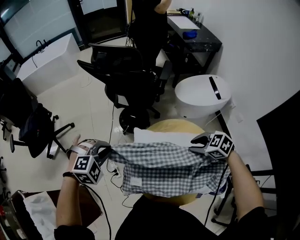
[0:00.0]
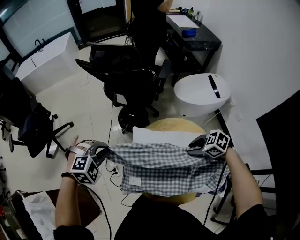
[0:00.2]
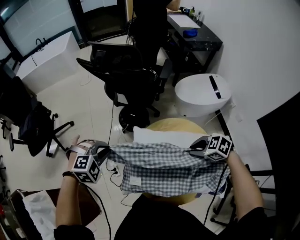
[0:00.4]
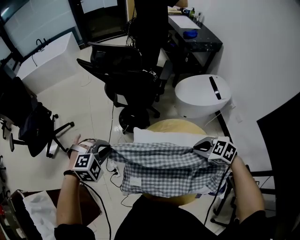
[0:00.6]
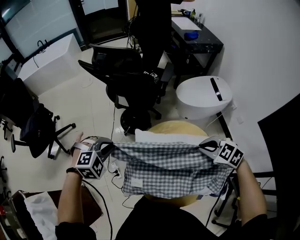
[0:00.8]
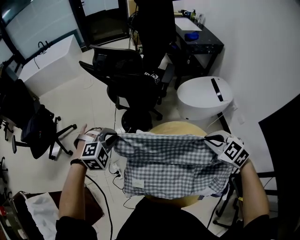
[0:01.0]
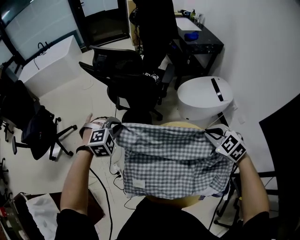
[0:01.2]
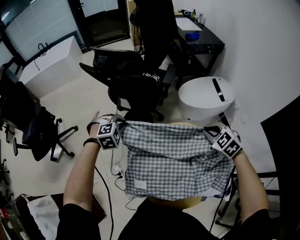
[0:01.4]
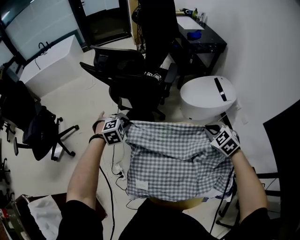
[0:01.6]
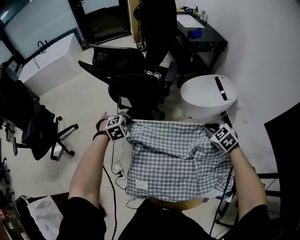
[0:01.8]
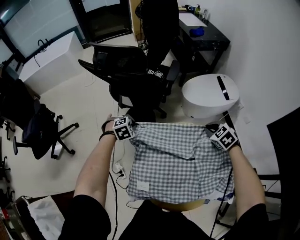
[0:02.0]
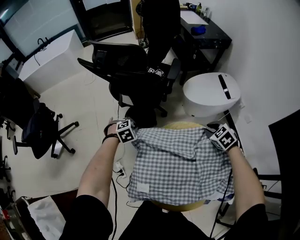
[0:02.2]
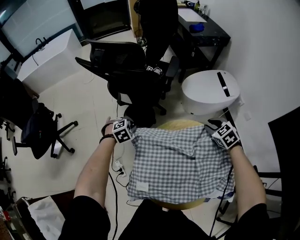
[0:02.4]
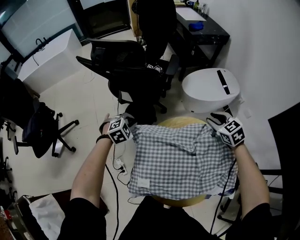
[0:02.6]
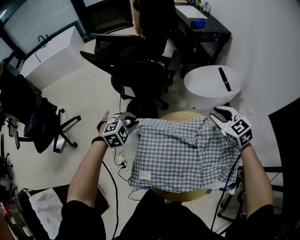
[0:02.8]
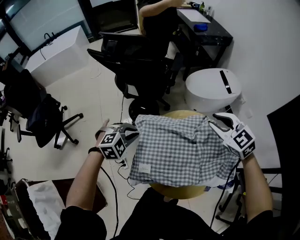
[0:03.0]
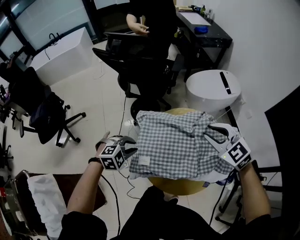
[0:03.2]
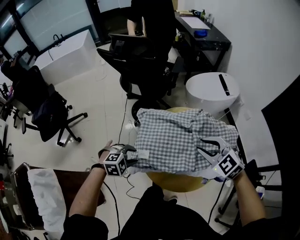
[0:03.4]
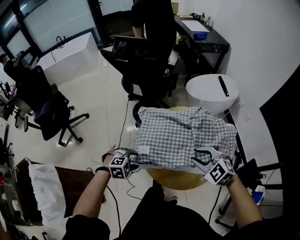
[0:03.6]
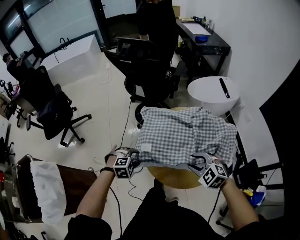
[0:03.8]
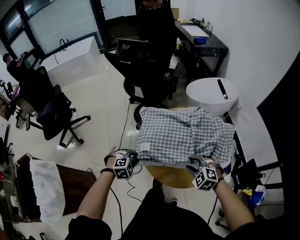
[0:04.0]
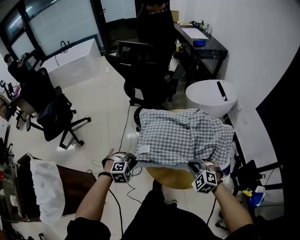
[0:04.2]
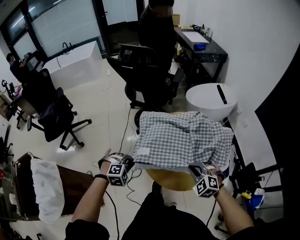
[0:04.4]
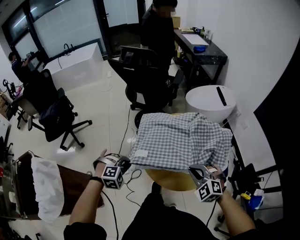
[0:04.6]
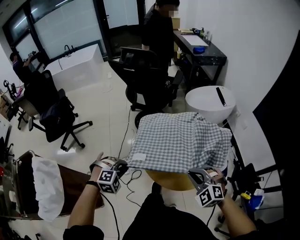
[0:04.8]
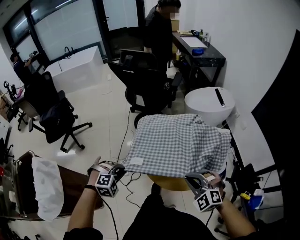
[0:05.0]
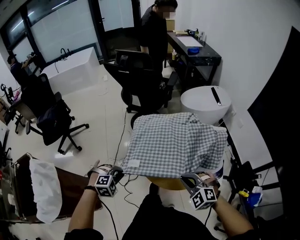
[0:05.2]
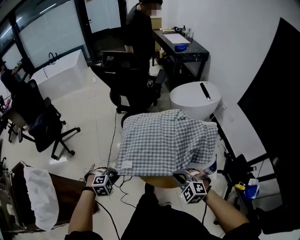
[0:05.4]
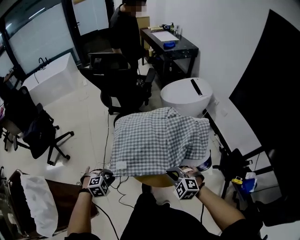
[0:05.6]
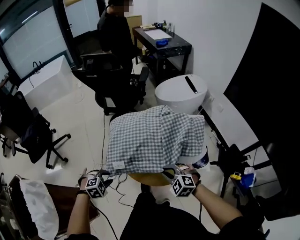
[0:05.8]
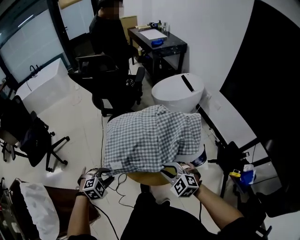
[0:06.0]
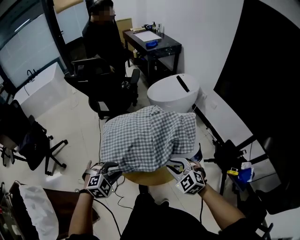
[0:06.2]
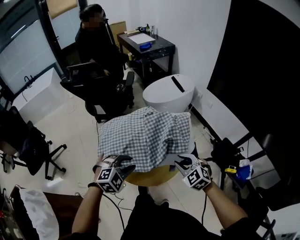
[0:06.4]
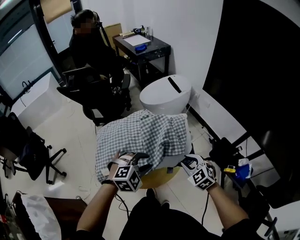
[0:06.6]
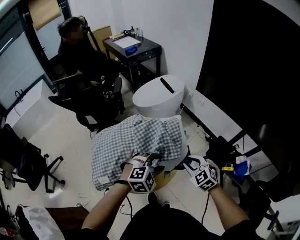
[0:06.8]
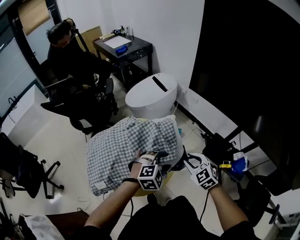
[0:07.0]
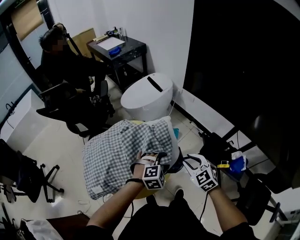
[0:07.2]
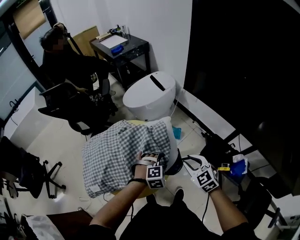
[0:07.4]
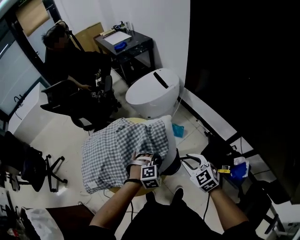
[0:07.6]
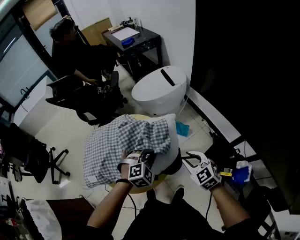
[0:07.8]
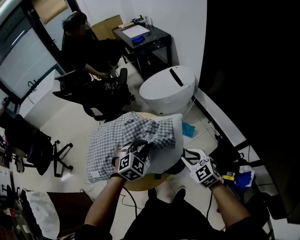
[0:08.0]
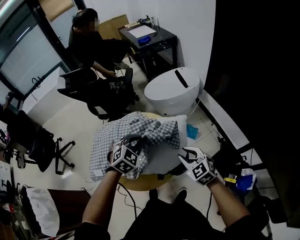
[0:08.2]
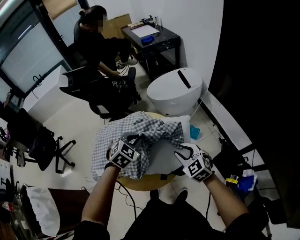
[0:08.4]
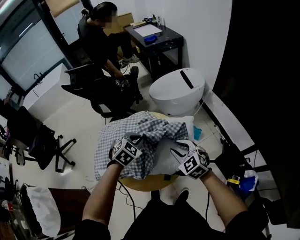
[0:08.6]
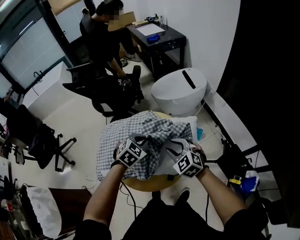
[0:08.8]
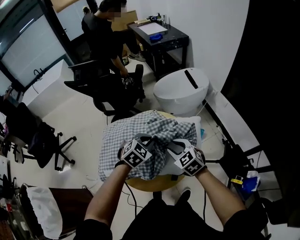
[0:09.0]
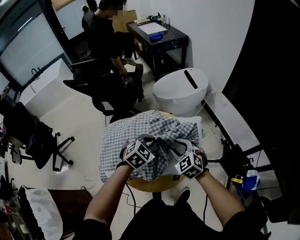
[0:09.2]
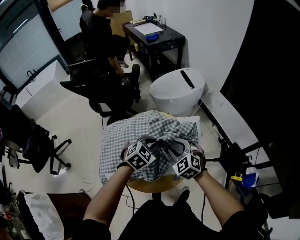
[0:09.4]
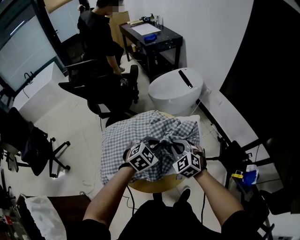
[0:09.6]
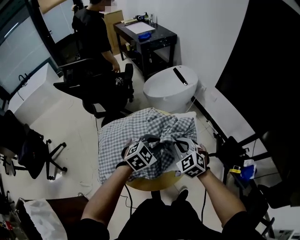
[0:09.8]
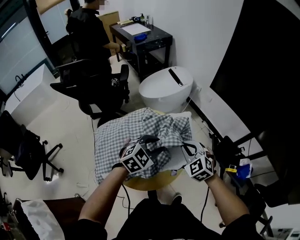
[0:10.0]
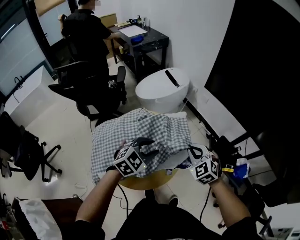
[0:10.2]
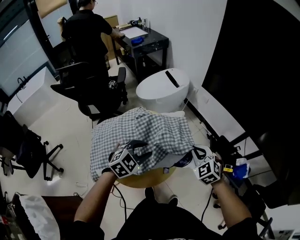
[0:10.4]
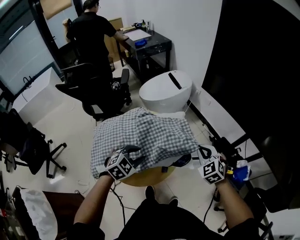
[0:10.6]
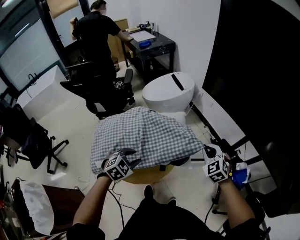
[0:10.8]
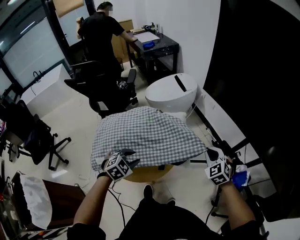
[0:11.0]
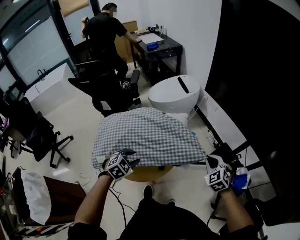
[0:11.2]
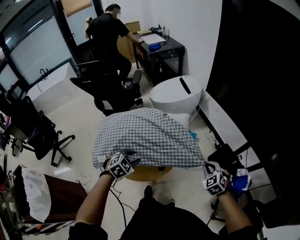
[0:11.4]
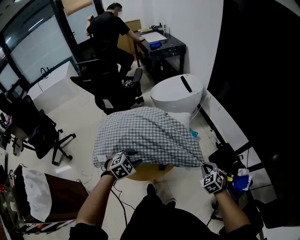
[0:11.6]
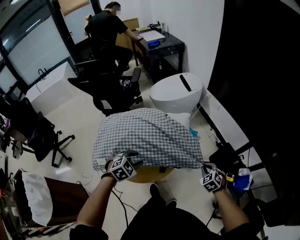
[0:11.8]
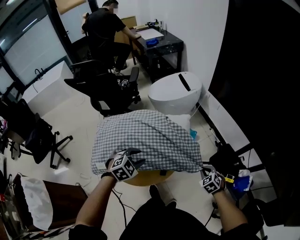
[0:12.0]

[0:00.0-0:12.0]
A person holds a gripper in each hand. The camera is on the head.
0:00.0 to 0:01.6: The left gripper shifts by approximately 20 cm; the right gripper goes upward and returns, some 10 cm each way, turns by approximately 30 degrees, and closes.
0:01.6 to 0:03.0: The right gripper shifts some 10 cm upward and backward, changes its angle by approximately 20 degrees, and opens up. Meanwhile the left gripper is displaced backward by roughly 15 cm.
0:03.0 to 0:04.4: The right gripper heads backward and downward, covering approximately 30 cm, changes its angle by roughly 30 degrees, and closes its fingers. Meanwhile the left gripper heads backward, covering approximately 25 cm, and opens, then closes once more.
0:04.4 to 0:06.0: The right gripper goes up and down, approximately 10 cm each way, reversing 2 times, and opens; the left gripper swings up and down, about 10 cm each way, with 2 reversals, and opens up.
0:06.0 to 0:07.6: The right gripper shifts by roughly 30 cm, and turns by approximately 40 degrees, while the left gripper reaches roughly 10 cm upward, then returns, turns by some 20 degrees, and opens, then closes once more.
0:07.6 to 0:09.0: The left gripper is displaced to the left, forward and upward by some 20 cm, and changes its angle by approximately 40 degrees. Meanwhile the right gripper is displaced to the left and forward by approximately 20 cm.
0:09.0 to 0:10.4: The right gripper moves about 20 cm, changes its angle by roughly 30 degrees, and closes, while the left gripper shifts by about 10 cm, rotates approximately 20 degrees, and opens its fingers.
0:10.4 to 0:12.0: The left gripper shifts approximately 5 cm downward. Meanwhile the right gripper travels downward and to the right by approximately 20 cm, and changes its angle by about 20 degrees.

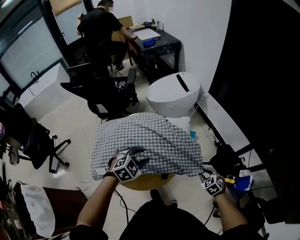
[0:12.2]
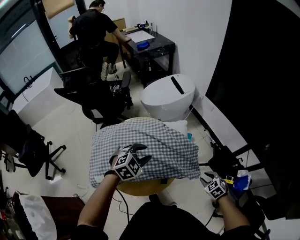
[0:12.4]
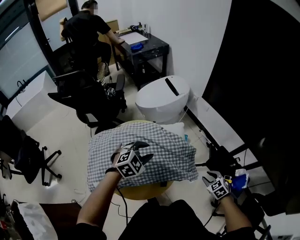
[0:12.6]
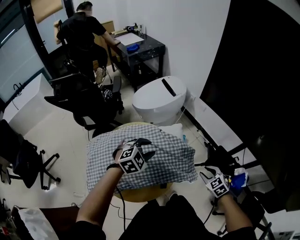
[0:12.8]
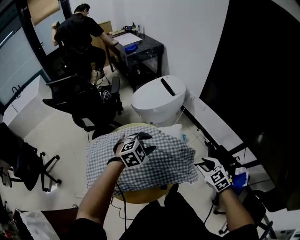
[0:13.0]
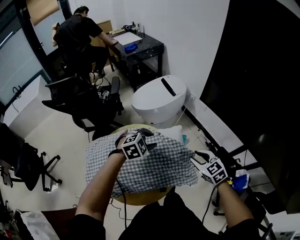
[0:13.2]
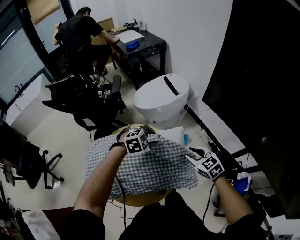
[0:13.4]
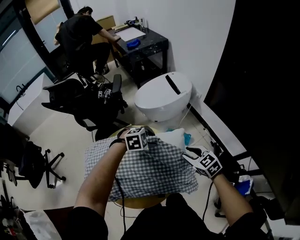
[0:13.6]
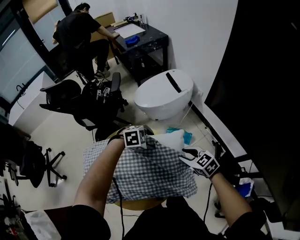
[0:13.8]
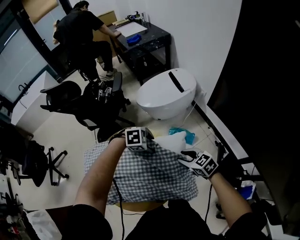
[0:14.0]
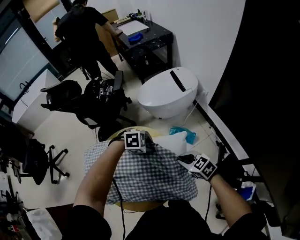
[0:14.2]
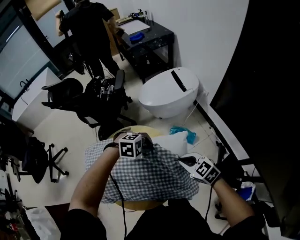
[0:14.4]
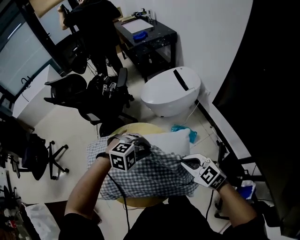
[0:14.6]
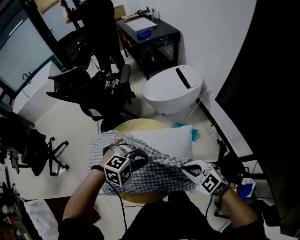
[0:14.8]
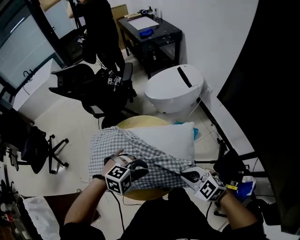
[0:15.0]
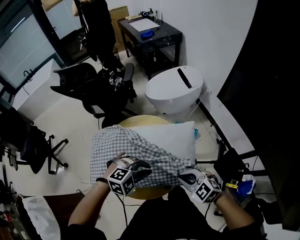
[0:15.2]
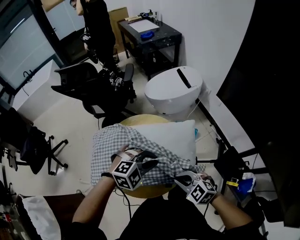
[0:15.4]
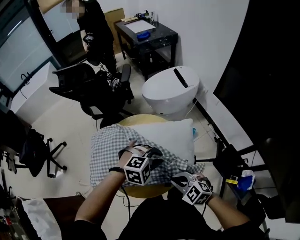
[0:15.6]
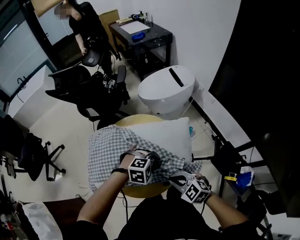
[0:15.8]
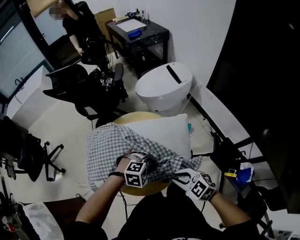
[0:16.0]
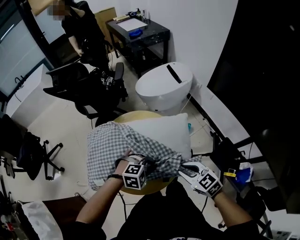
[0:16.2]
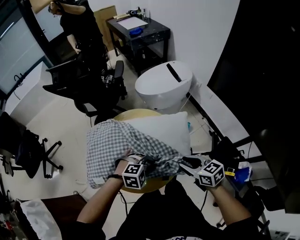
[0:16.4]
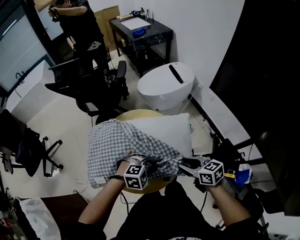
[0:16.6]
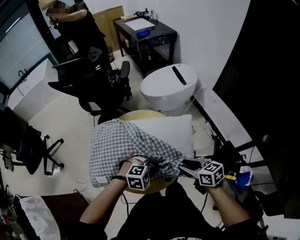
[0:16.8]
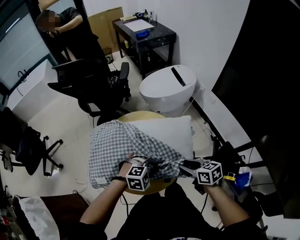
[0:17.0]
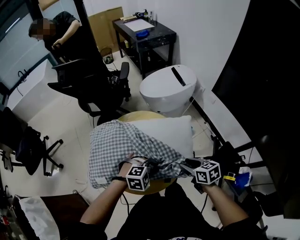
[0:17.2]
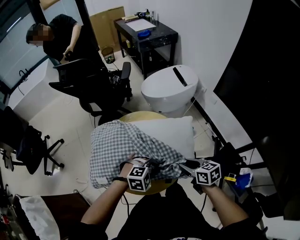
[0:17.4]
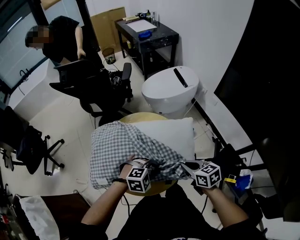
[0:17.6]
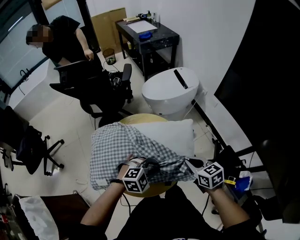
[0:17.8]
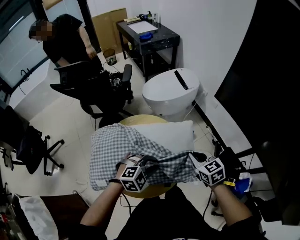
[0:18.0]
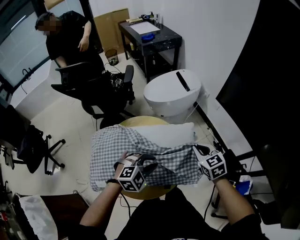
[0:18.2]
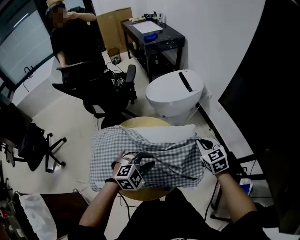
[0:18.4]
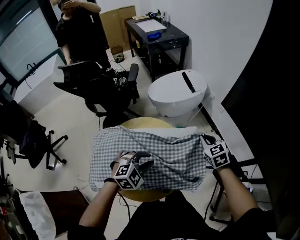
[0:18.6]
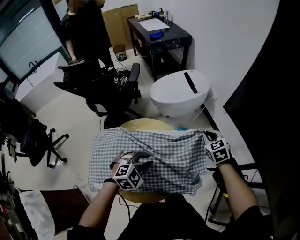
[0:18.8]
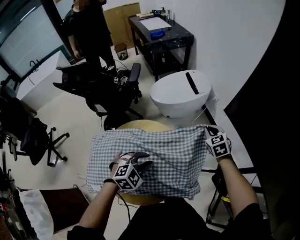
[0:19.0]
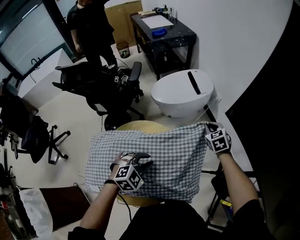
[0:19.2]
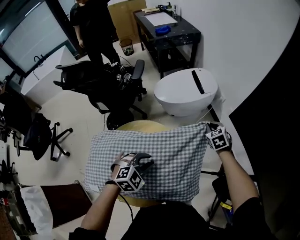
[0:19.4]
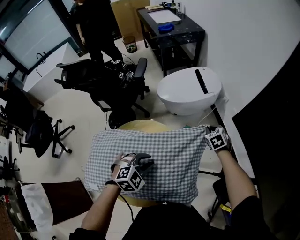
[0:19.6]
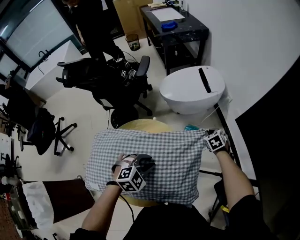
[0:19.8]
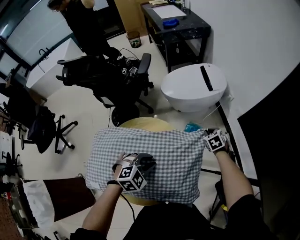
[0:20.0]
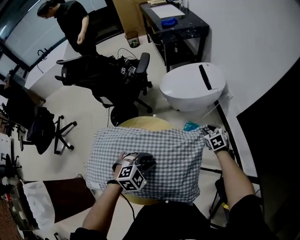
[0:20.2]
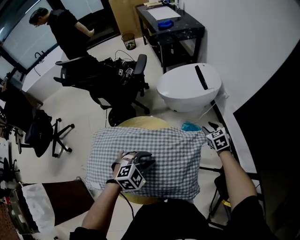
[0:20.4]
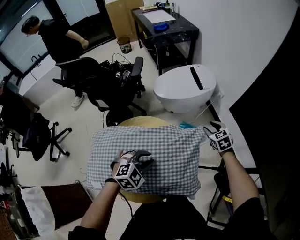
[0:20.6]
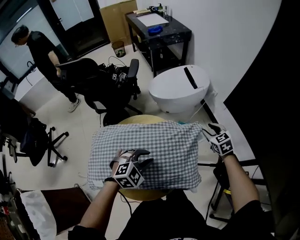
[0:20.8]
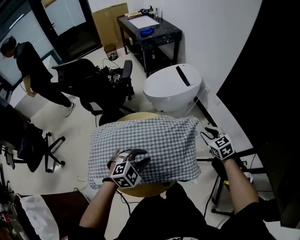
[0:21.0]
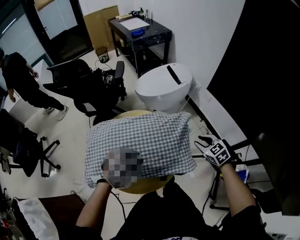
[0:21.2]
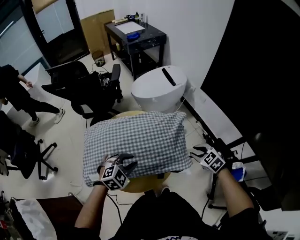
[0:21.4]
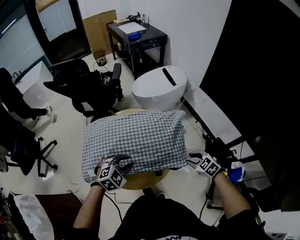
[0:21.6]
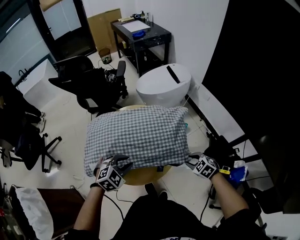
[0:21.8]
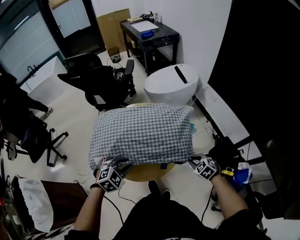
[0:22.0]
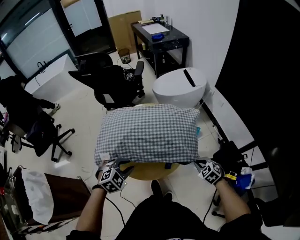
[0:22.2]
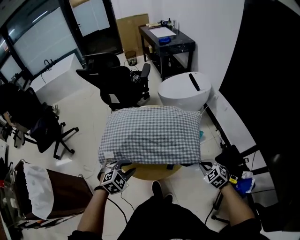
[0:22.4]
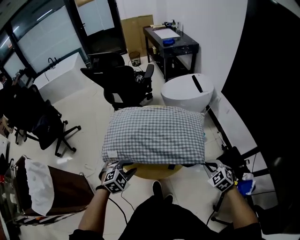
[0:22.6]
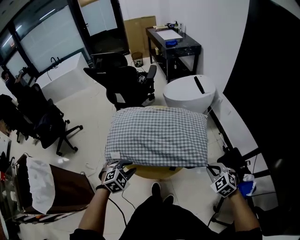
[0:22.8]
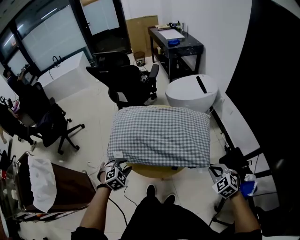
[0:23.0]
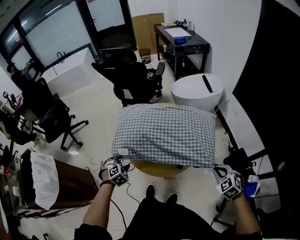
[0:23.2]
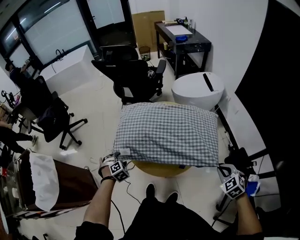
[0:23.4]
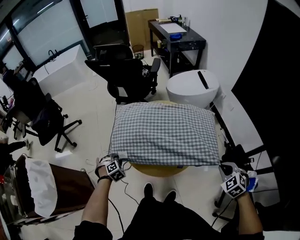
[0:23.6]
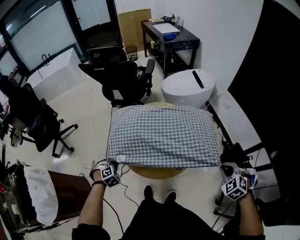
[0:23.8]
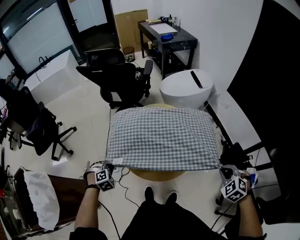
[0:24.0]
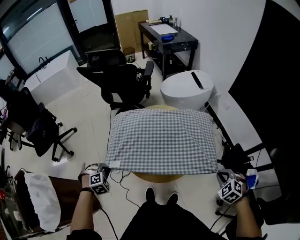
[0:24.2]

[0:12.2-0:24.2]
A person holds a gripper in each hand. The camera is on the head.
0:12.2 to 0:13.8: The right gripper changes place by approximately 25 cm, and turns by some 30 degrees. Meanwhile the left gripper shifts by some 25 cm, changes its angle by some 30 degrees, and opens up.
0:13.8 to 0:15.2: The left gripper changes place by roughly 25 cm, and closes. The right gripper shifts by roughly 20 cm, turns by about 20 degrees, and closes.
0:15.2 to 0:16.6: The right gripper rolls clockwise, seen from behind, by some 40 degrees, and opens its fingers. Meanwhile the left gripper is displaced downward by roughly 5 cm.
0:16.6 to 0:18.2: The left gripper is displaced upward by roughly 5 cm. The right gripper ends up roughly 15 cm from where it was, rotates roughly 30 degrees, and closes up.
0:18.2 to 0:19.8: The right gripper is displaced forward and downward by about 30 cm, and changes its angle by approximately 30 degrees. Meanwhile the left gripper moves forward and downward, approximately 10 cm.
0:19.8 to 0:21.2: The left gripper is displaced backward by roughly 10 cm. Meanwhile the right gripper travels backward and upward by approximately 30 cm, and opens.
0:21.2 to 0:22.6: The right gripper moves backward, about 20 cm, swivels about 20 degrees, and closes, while the left gripper is displaced backward and to the left by roughly 20 cm, and rotates about 20 degrees.
0:22.6 to 0:24.2: The right gripper changes place by some 5 cm. Meanwhile the left gripper travels to the left by about 20 cm, turns by approximately 20 degrees, and closes its fingers.
